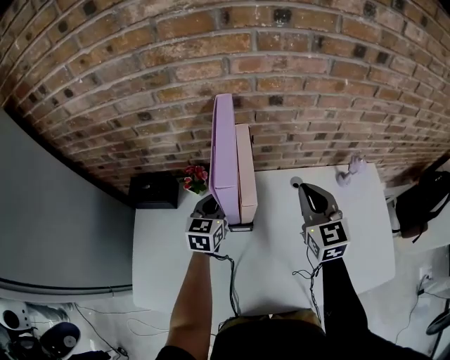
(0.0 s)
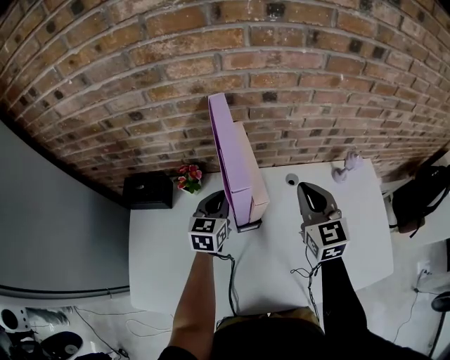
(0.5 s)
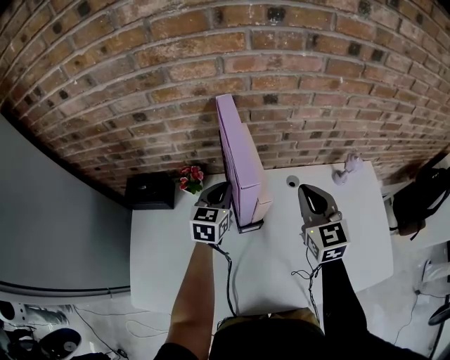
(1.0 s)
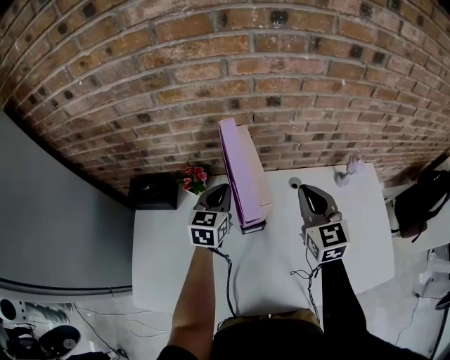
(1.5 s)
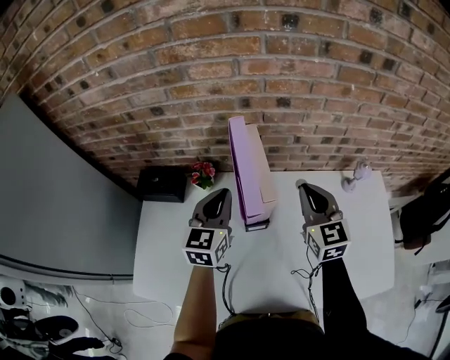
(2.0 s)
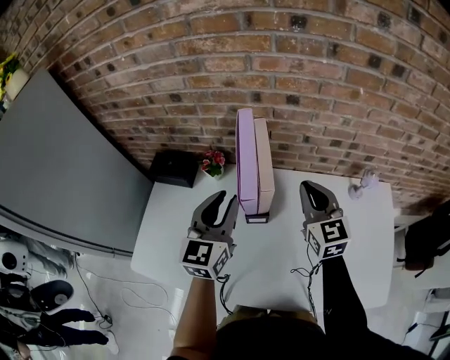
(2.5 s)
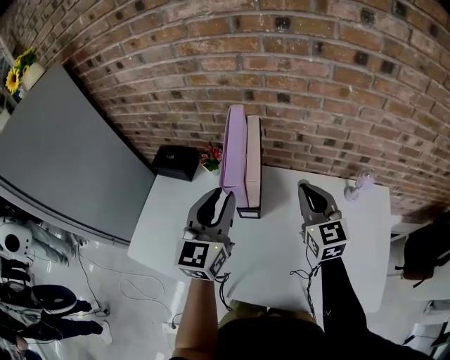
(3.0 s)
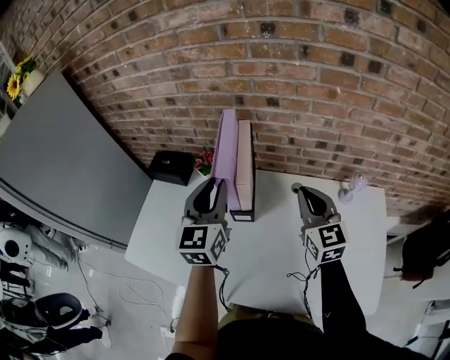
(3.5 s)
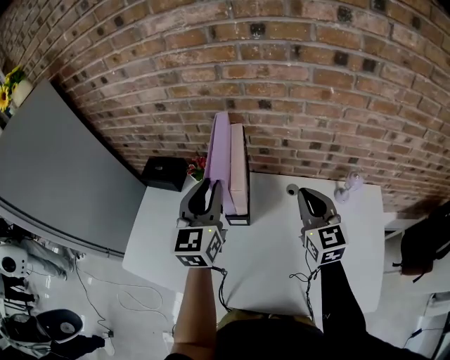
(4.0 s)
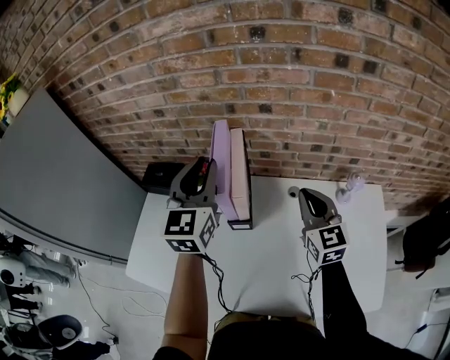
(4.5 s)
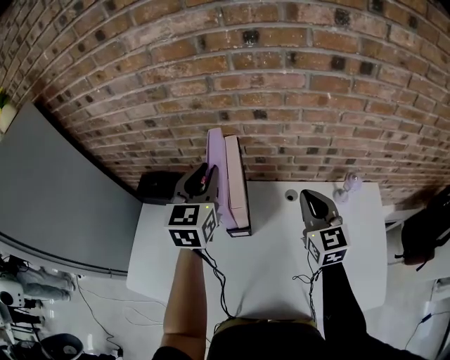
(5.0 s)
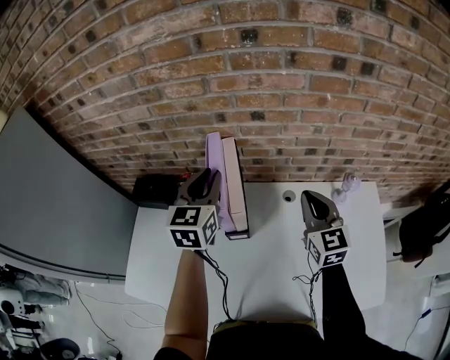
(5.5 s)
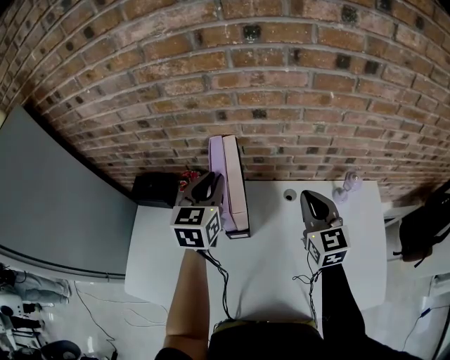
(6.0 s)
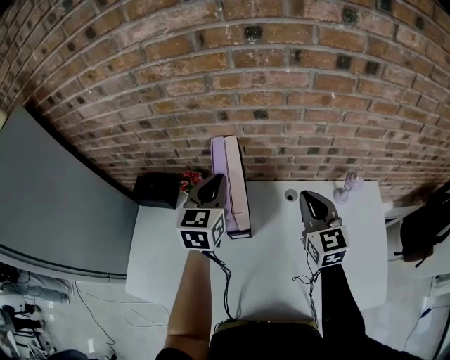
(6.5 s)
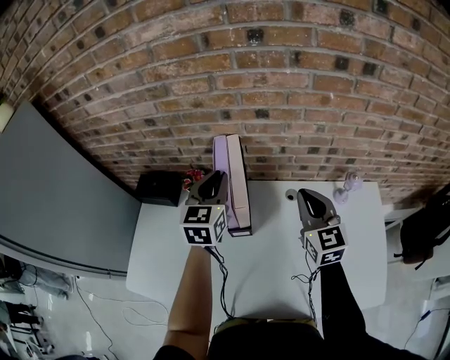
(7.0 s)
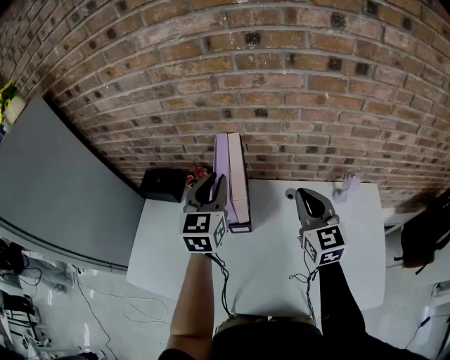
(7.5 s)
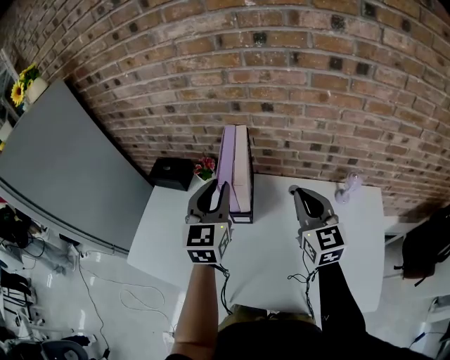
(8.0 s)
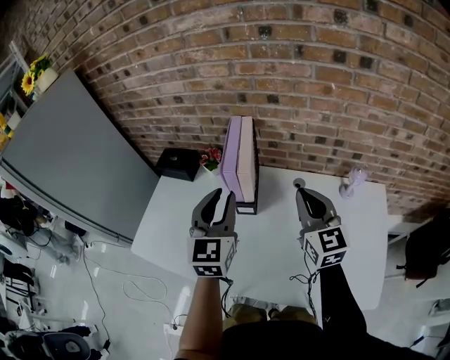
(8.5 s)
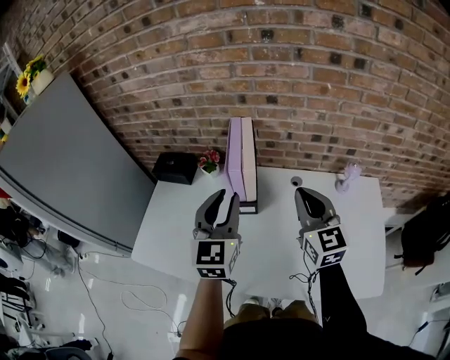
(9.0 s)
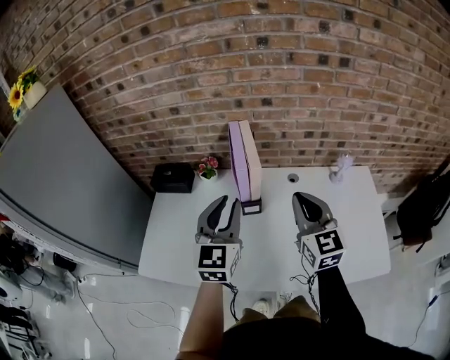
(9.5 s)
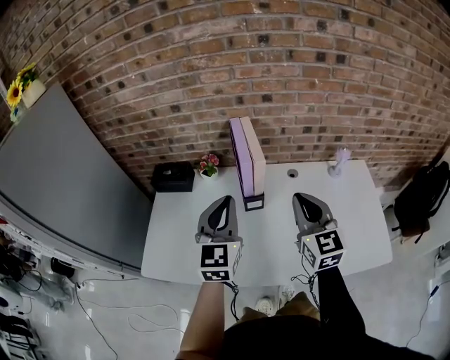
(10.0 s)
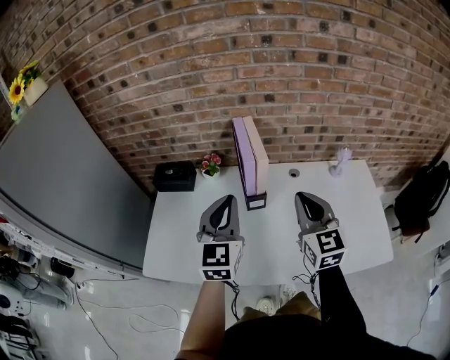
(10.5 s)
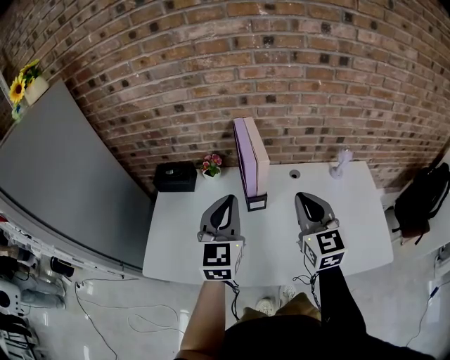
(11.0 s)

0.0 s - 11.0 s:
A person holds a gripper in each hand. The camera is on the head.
0.0 s - 2.0 s: The left gripper goes roughly 10 cm upward.
2.0 s - 3.5 s: The right gripper moves to the right, some 5 cm. The left gripper is displaced upward and backward by about 10 cm, and turns by approximately 20 degrees.
3.5 s - 5.5 s: The left gripper heads forward, covering roughly 10 cm.
5.5 s - 7.5 s: The grippers stay close to where they were, moving slightly.
7.5 s - 9.0 s: The right gripper travels backward by roughly 10 cm. Meanwhile the left gripper is displaced backward by about 15 cm.
9.0 s - 11.0 s: The right gripper travels backward and to the left by approximately 10 cm; the left gripper goes approximately 5 cm to the left.

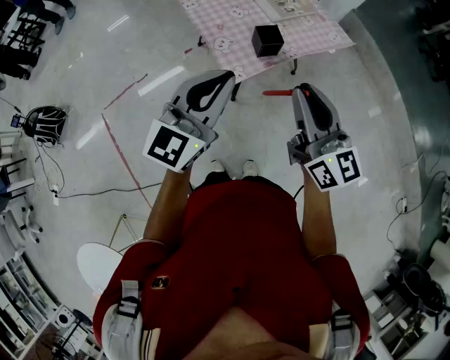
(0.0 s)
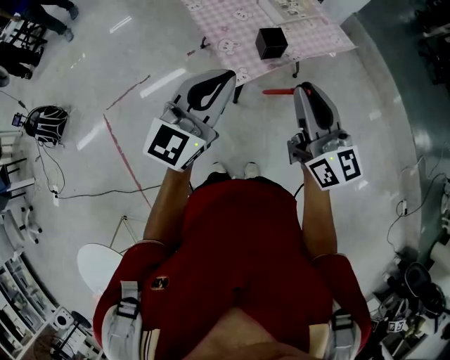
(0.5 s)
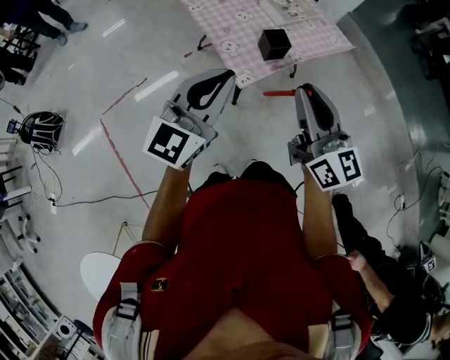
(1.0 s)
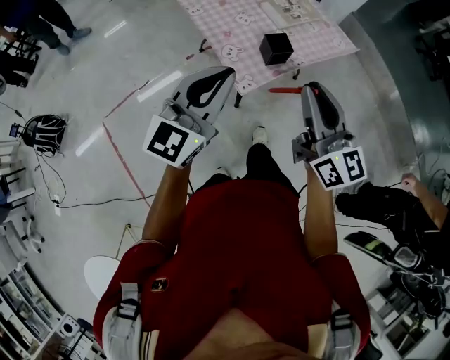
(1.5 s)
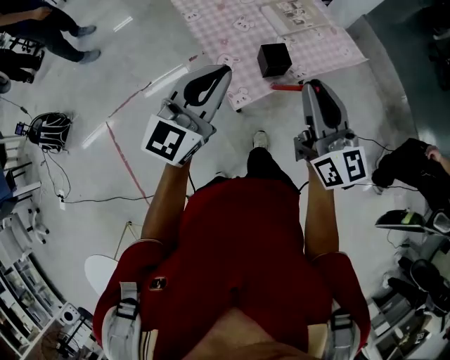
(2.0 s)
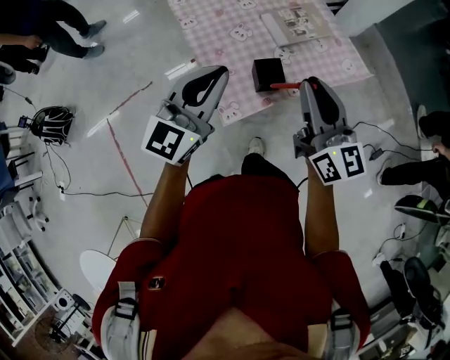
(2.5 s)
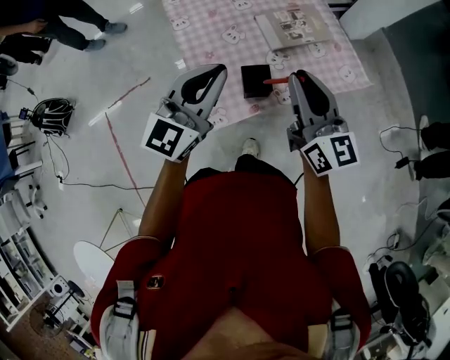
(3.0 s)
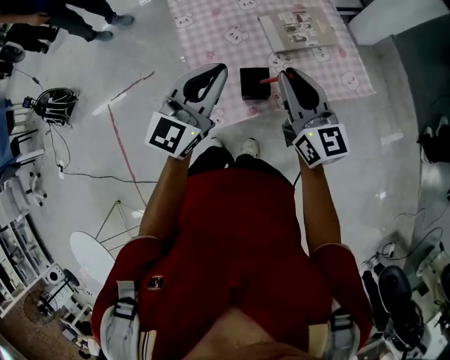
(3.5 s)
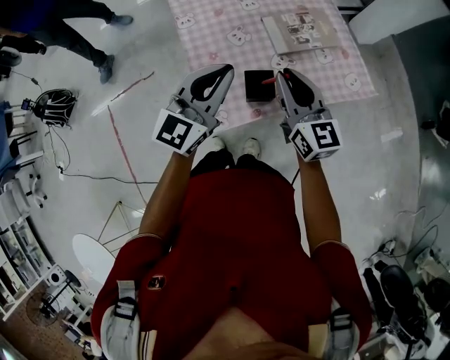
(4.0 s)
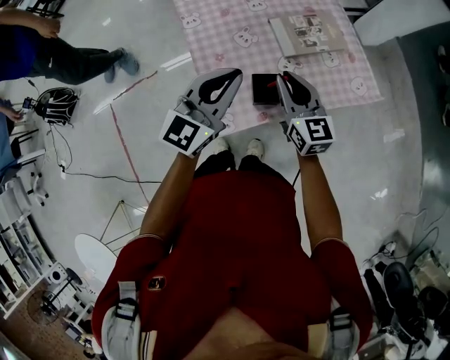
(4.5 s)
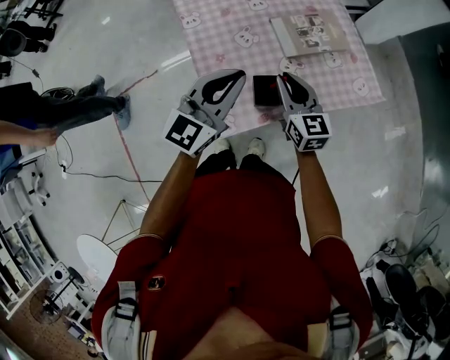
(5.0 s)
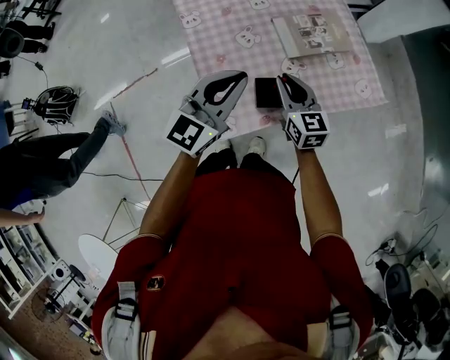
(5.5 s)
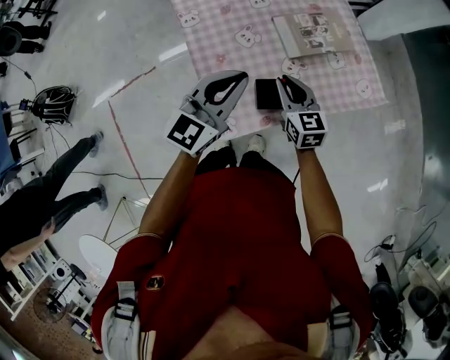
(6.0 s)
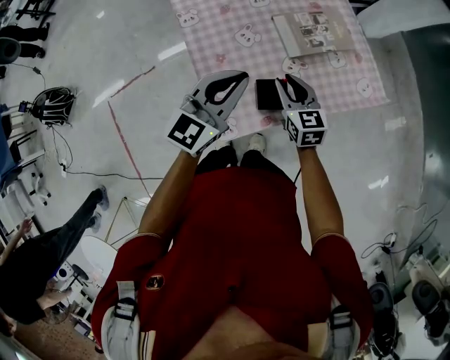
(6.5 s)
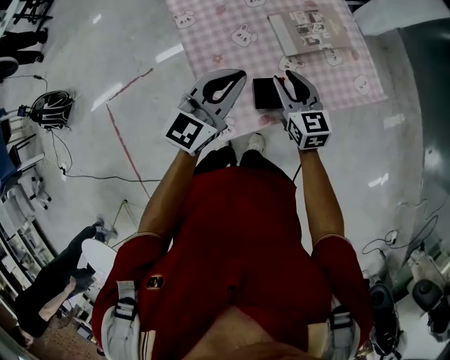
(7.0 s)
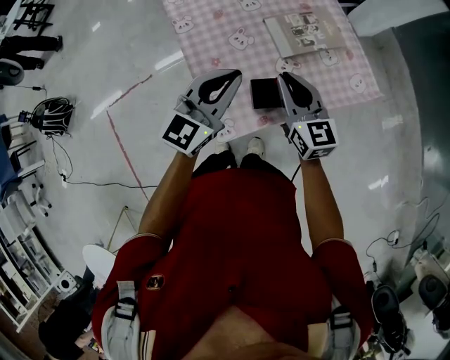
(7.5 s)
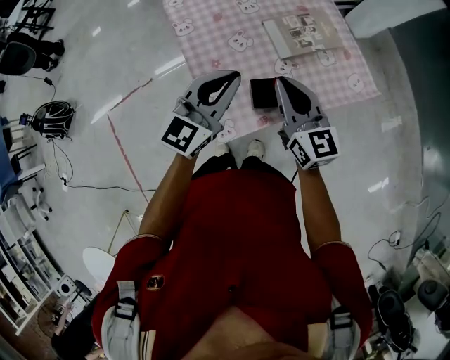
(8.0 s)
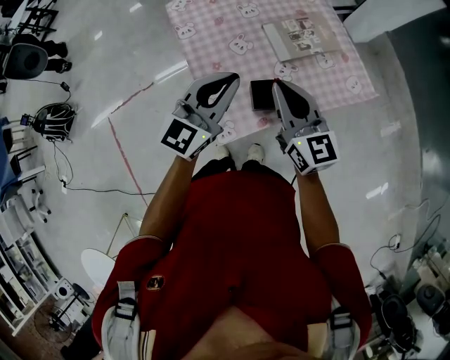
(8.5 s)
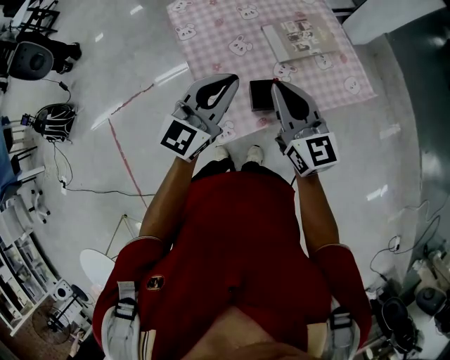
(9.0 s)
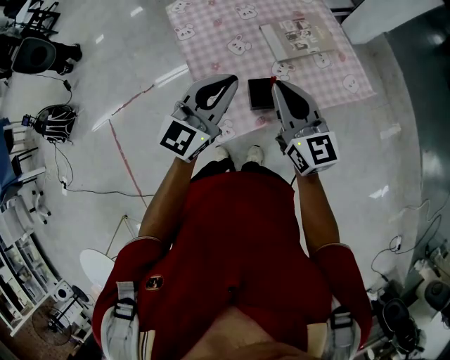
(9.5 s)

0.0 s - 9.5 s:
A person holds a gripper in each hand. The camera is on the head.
0.0 s - 2.0 s: The two grippers go some 15 cm forward.
2.0 s - 4.0 s: The left gripper travels forward, to the right and downward by some 20 cm, while the right gripper heads forward and downward, covering some 20 cm.
4.0 s - 5.5 s: The right gripper travels downward by roughly 10 cm.
5.5 s - 7.5 s: The right gripper shifts roughly 5 cm upward.
7.5 s - 9.5 s: The right gripper heads upward and backward, covering about 10 cm. Meanwhile the left gripper changes place by approximately 5 cm.

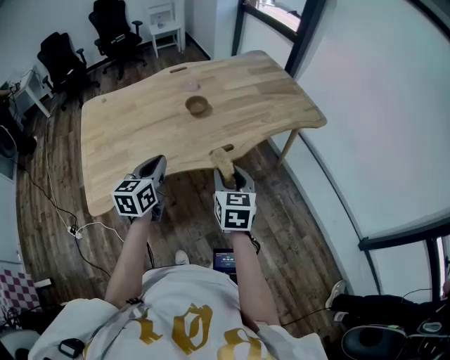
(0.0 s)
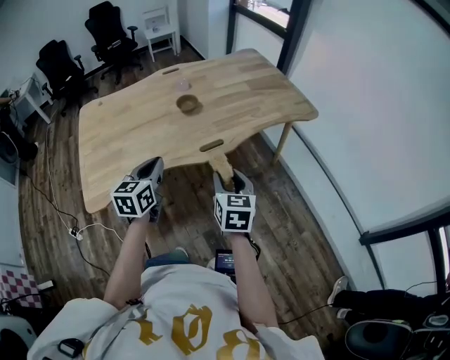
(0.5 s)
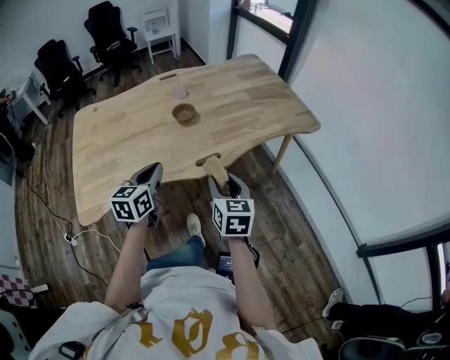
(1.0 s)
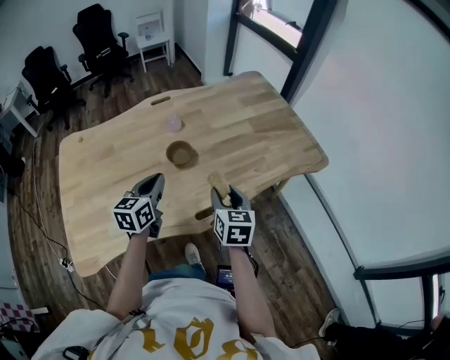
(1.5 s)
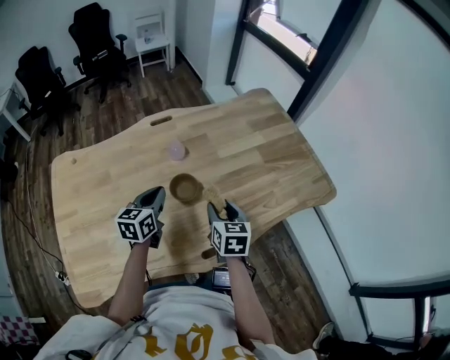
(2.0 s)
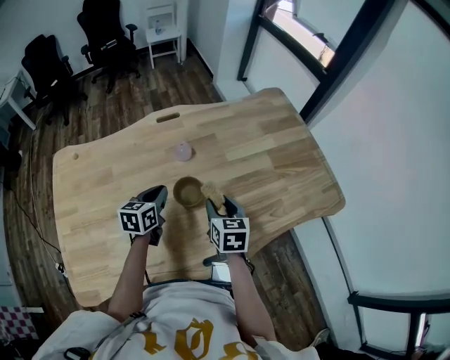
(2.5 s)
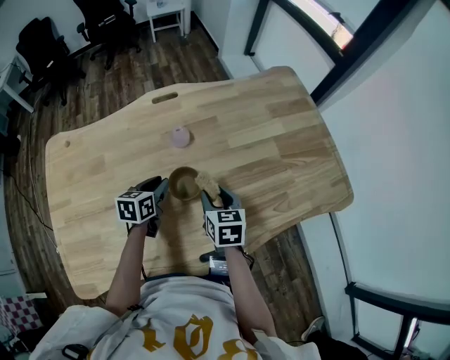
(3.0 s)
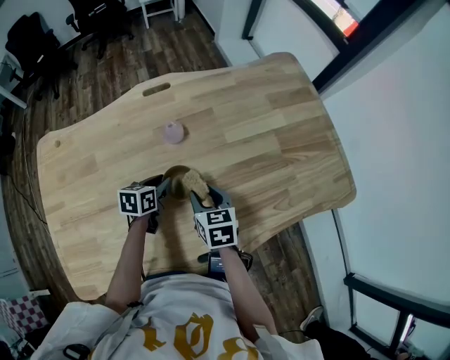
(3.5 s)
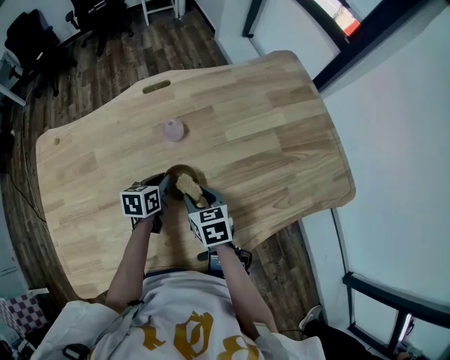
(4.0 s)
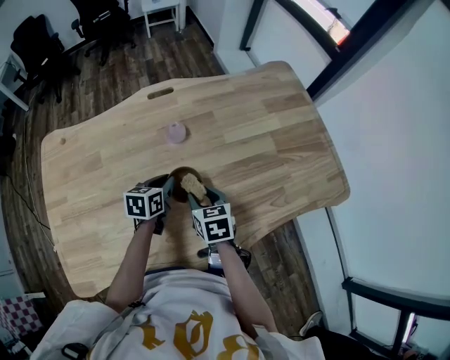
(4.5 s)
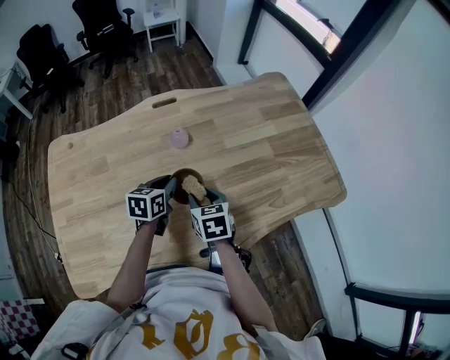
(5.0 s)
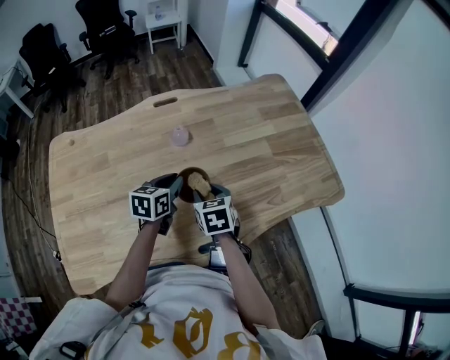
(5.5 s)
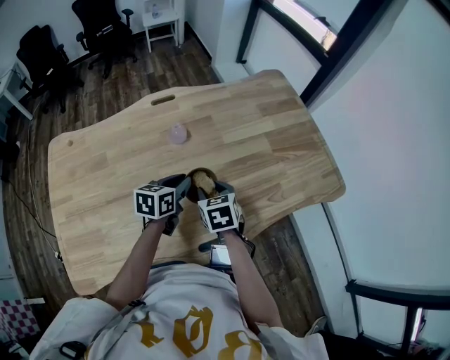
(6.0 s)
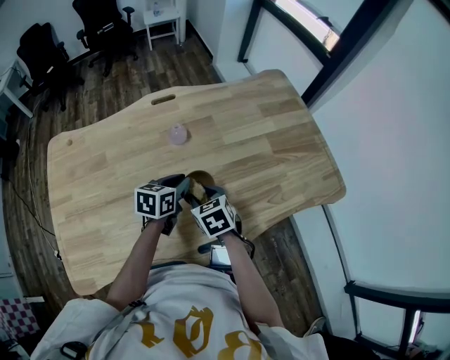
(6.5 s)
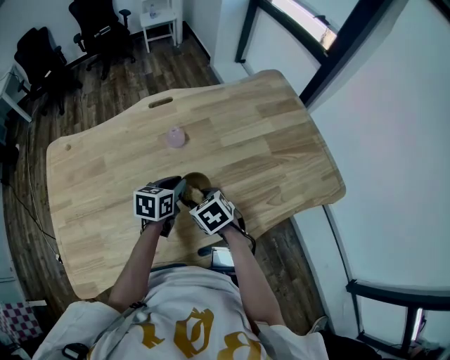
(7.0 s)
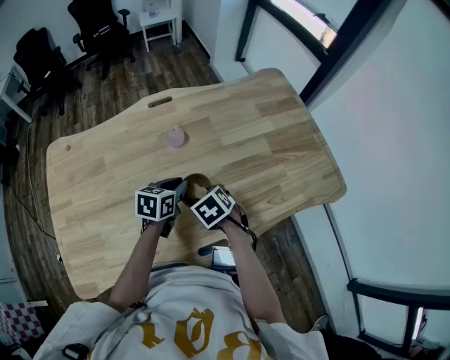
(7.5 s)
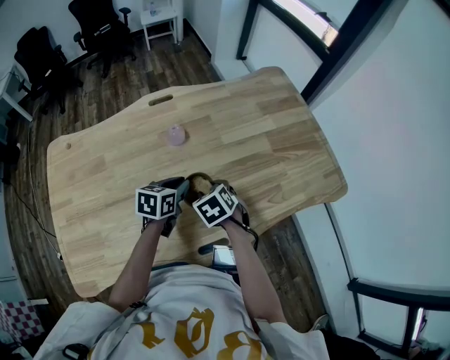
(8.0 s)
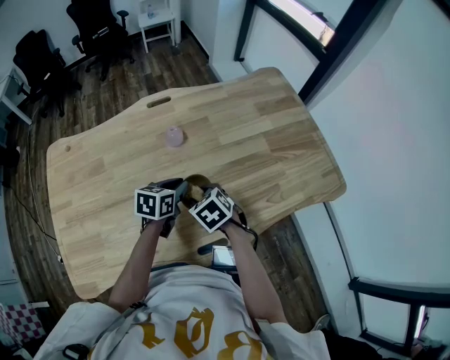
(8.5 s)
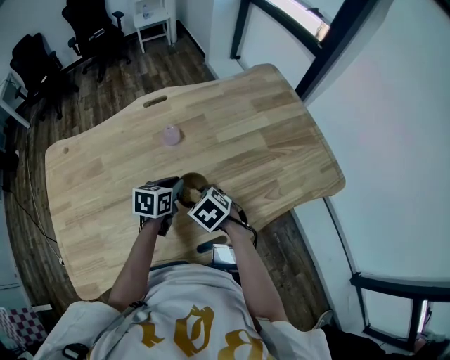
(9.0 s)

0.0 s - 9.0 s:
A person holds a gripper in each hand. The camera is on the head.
0.0 s - 2.0 s: The grippers both shift forward by about 35 cm.
2.0 s - 4.5 s: The left gripper shifts about 15 cm downward and forward, and turns by about 20 degrees. Meanwhile the right gripper heads downward, to the left and forward, covering about 10 cm, and rotates roughly 20 degrees.
4.5 s - 7.0 s: The right gripper turns by approximately 30 degrees, while the left gripper shifts by approximately 5 cm.
7.0 s - 9.0 s: The grippers move only a little.
